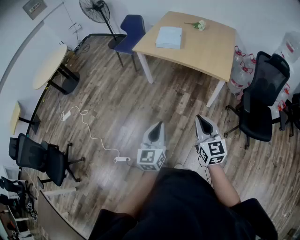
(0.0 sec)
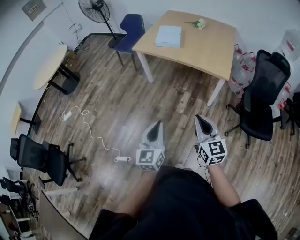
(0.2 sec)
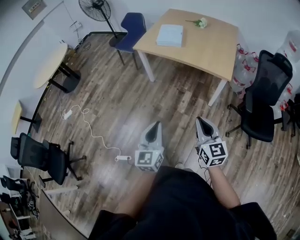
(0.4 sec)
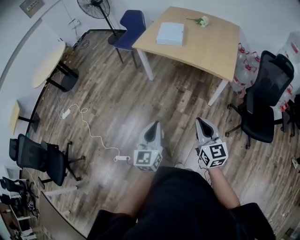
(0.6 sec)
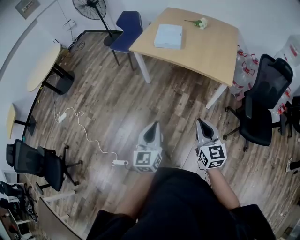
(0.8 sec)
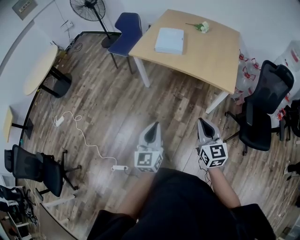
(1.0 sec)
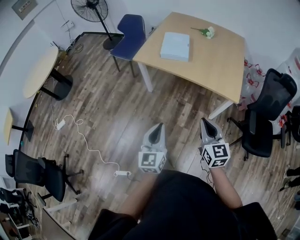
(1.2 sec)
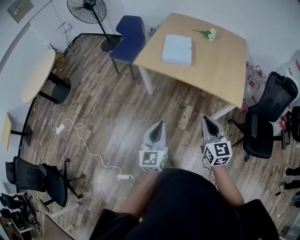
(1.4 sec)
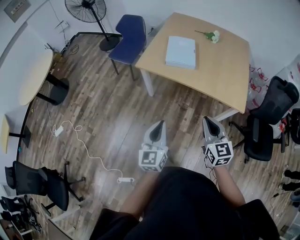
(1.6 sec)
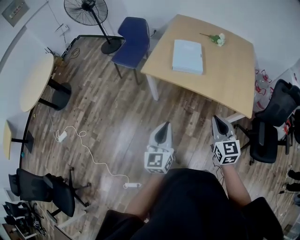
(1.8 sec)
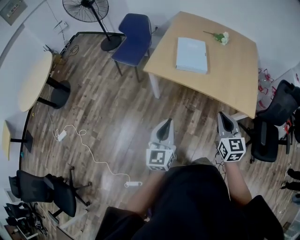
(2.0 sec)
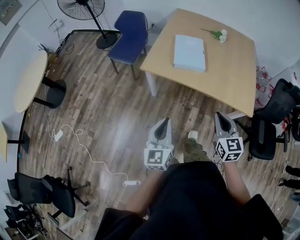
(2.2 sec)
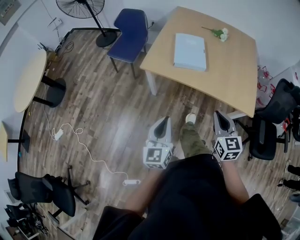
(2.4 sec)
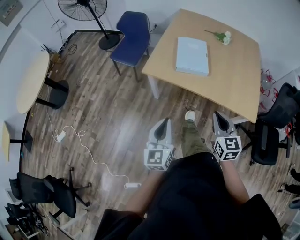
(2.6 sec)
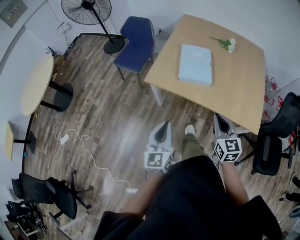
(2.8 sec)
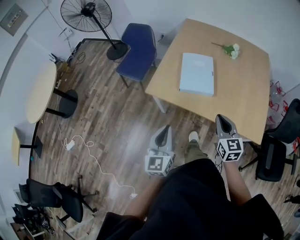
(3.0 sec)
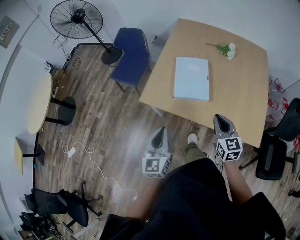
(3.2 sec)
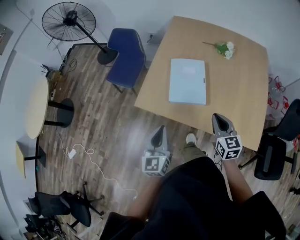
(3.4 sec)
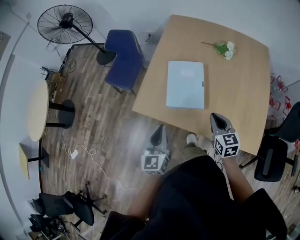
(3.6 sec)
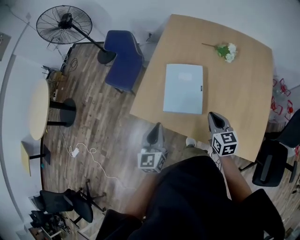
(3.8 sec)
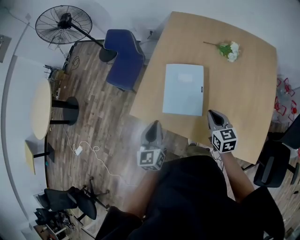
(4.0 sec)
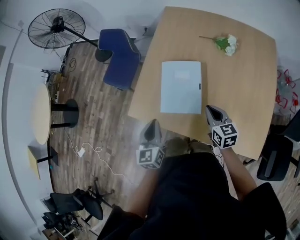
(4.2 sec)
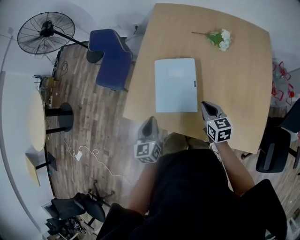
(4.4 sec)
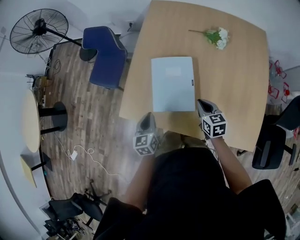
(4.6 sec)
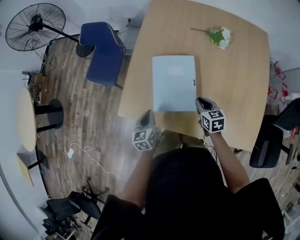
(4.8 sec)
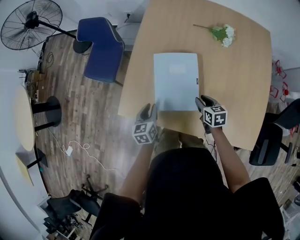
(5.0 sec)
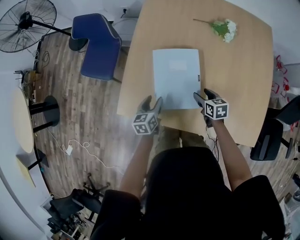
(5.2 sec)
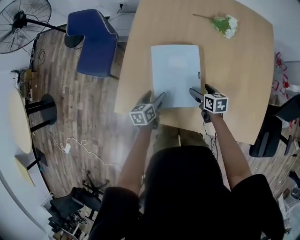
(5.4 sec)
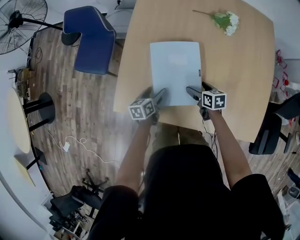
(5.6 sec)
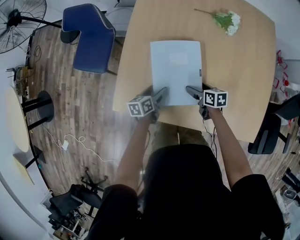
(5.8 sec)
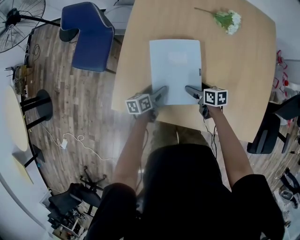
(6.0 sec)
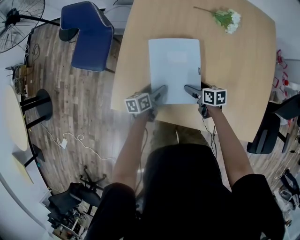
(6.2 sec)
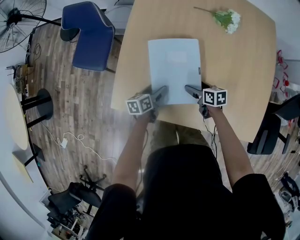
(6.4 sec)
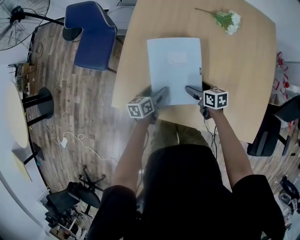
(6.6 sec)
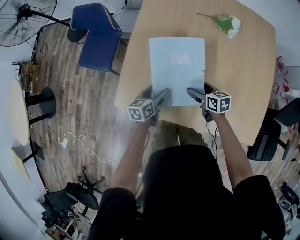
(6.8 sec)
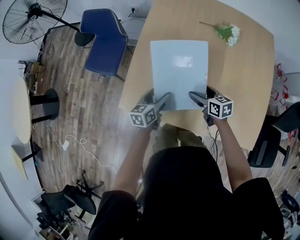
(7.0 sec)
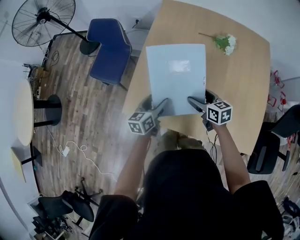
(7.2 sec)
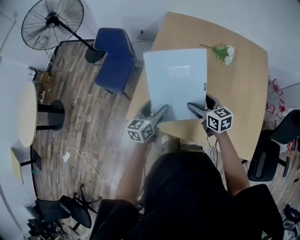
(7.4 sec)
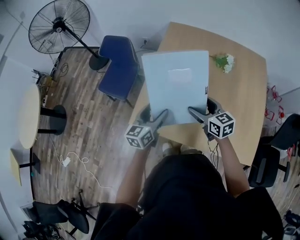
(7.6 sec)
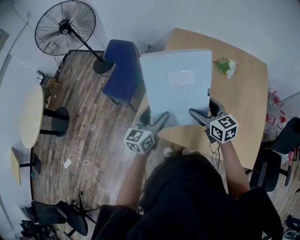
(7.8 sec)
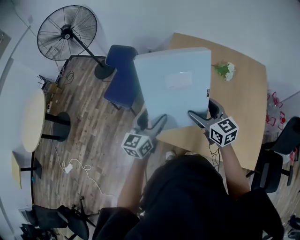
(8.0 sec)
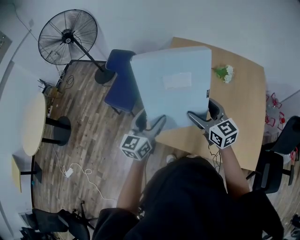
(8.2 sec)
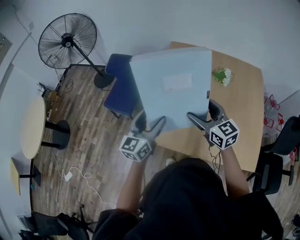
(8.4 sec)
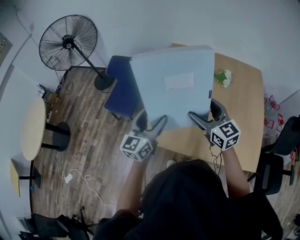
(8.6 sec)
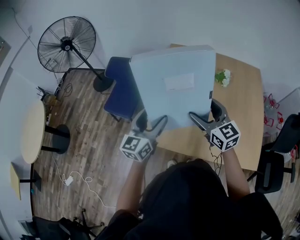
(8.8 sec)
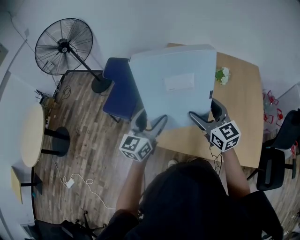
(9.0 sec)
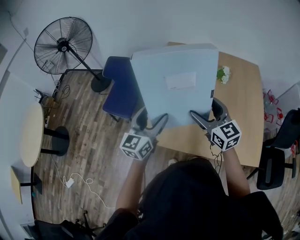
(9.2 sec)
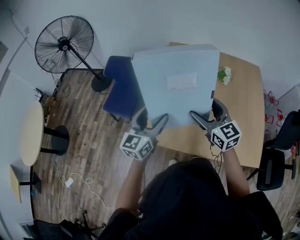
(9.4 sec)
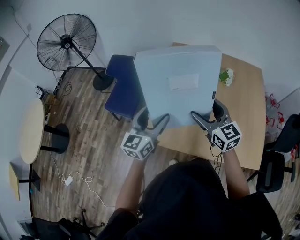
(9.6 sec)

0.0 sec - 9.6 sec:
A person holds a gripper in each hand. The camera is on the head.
0.0 sec - 1.6 sec: The pair of grippers is taken forward, approximately 40 cm.
1.6 sec - 3.2 sec: The grippers both shift forward by approximately 40 cm.
3.2 sec - 4.8 sec: Both grippers travel together forward and downward, some 35 cm. The right gripper changes its angle by roughly 30 degrees. The left gripper turns by some 30 degrees.
4.8 sec - 6.4 sec: The left gripper goes about 15 cm downward and forward, changes its angle by some 30 degrees, and opens its fingers; the right gripper goes approximately 15 cm downward, swivels approximately 30 degrees, and opens its fingers.
6.4 sec - 8.0 sec: Both grippers travel together upward, about 40 cm. The left gripper rotates approximately 50 degrees. The right gripper rotates about 50 degrees.
8.0 sec - 9.6 sec: The right gripper shifts by about 5 cm, while the left gripper shifts by approximately 5 cm.

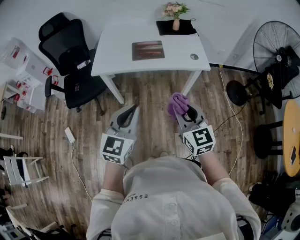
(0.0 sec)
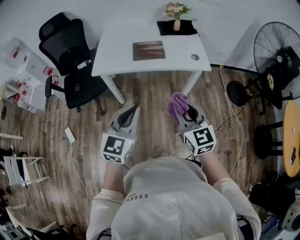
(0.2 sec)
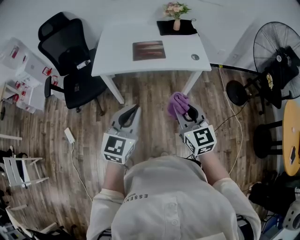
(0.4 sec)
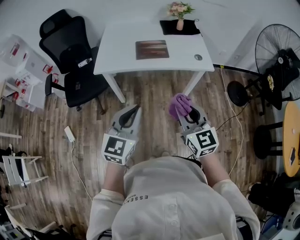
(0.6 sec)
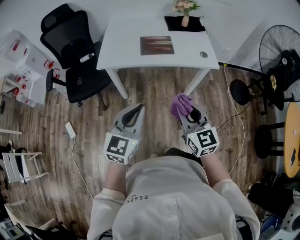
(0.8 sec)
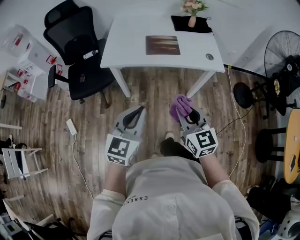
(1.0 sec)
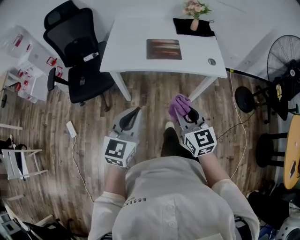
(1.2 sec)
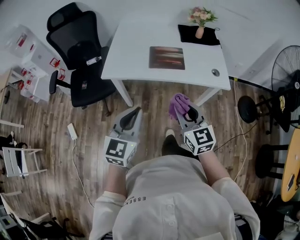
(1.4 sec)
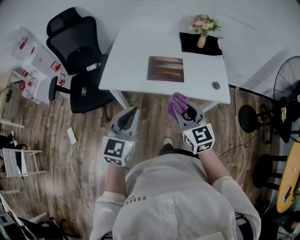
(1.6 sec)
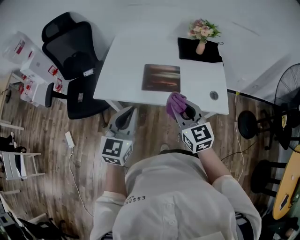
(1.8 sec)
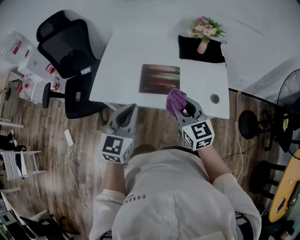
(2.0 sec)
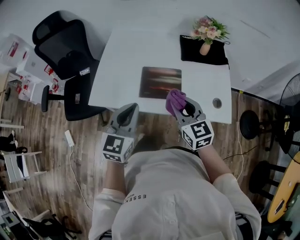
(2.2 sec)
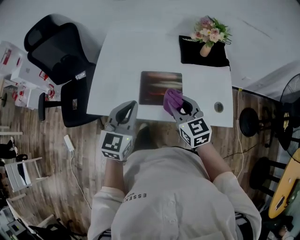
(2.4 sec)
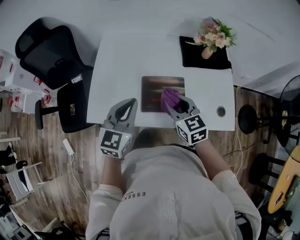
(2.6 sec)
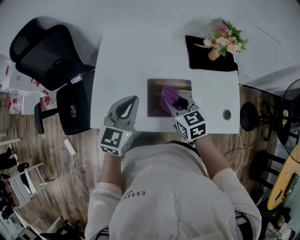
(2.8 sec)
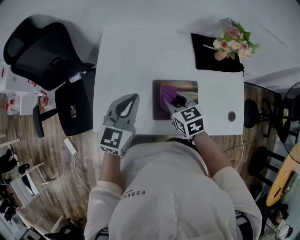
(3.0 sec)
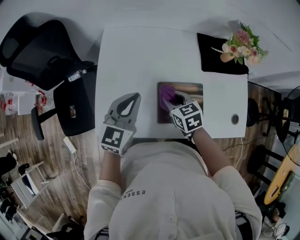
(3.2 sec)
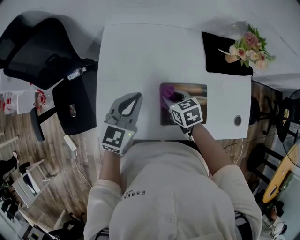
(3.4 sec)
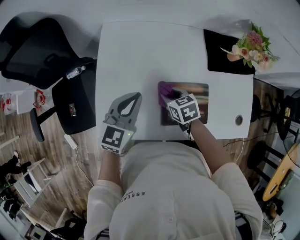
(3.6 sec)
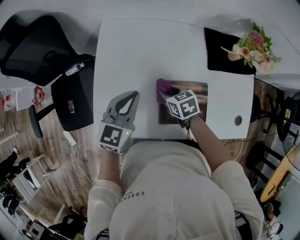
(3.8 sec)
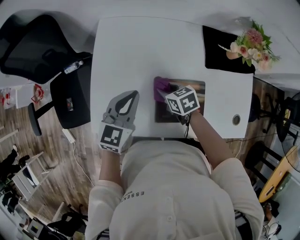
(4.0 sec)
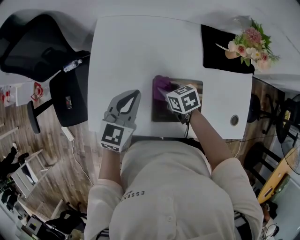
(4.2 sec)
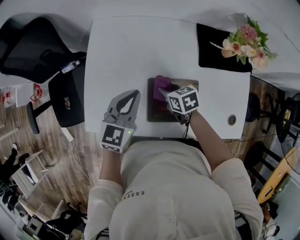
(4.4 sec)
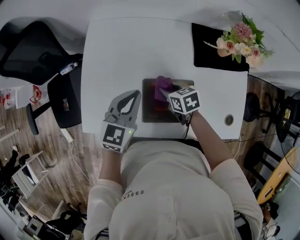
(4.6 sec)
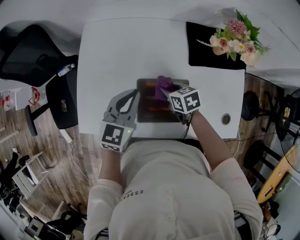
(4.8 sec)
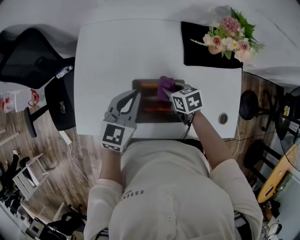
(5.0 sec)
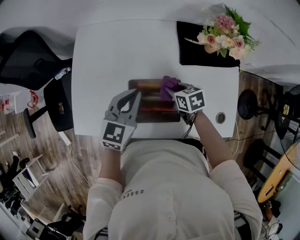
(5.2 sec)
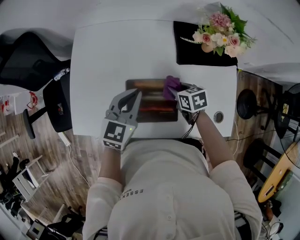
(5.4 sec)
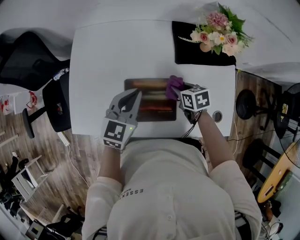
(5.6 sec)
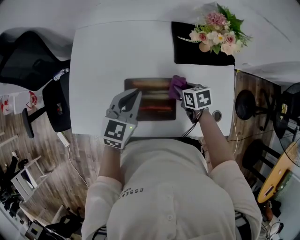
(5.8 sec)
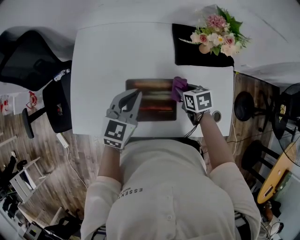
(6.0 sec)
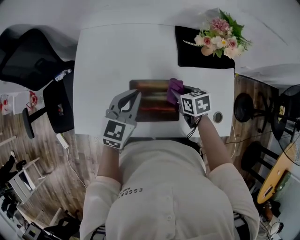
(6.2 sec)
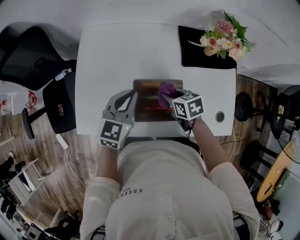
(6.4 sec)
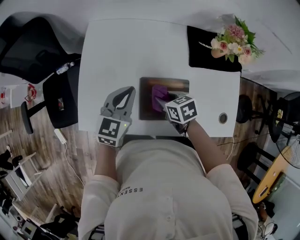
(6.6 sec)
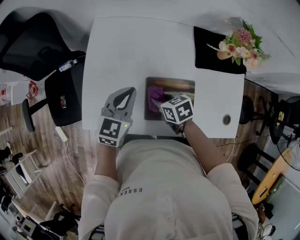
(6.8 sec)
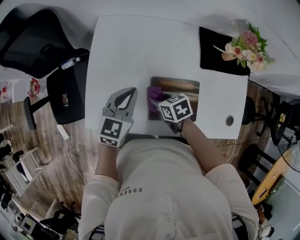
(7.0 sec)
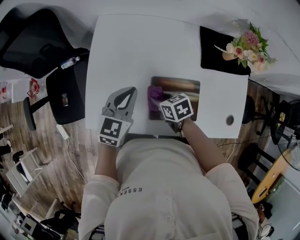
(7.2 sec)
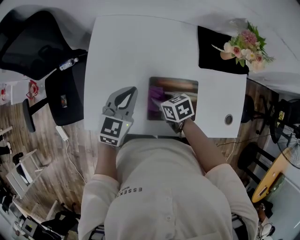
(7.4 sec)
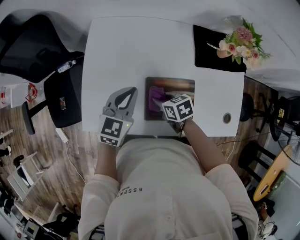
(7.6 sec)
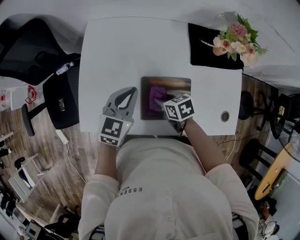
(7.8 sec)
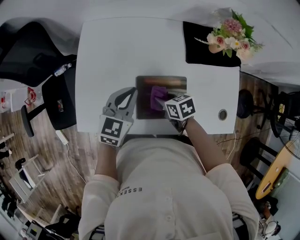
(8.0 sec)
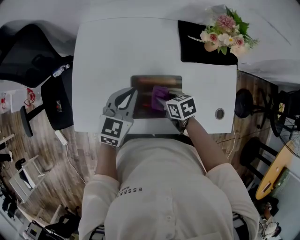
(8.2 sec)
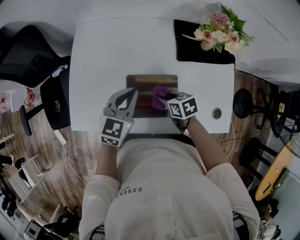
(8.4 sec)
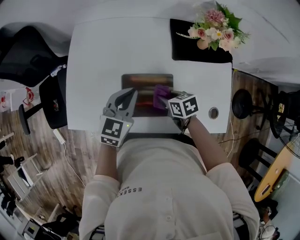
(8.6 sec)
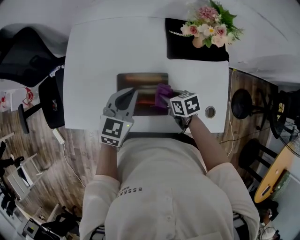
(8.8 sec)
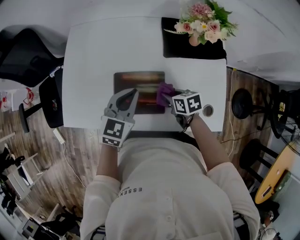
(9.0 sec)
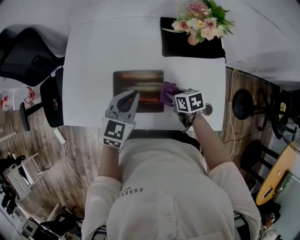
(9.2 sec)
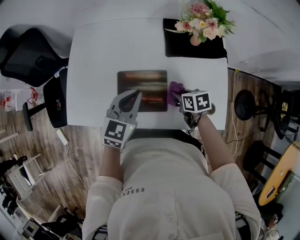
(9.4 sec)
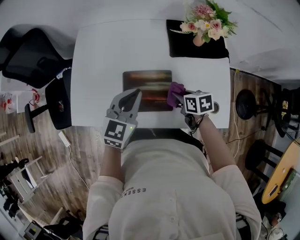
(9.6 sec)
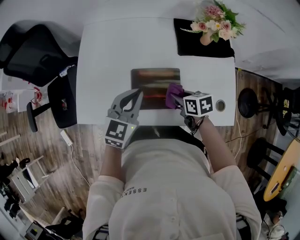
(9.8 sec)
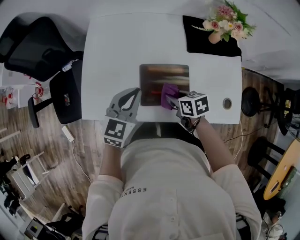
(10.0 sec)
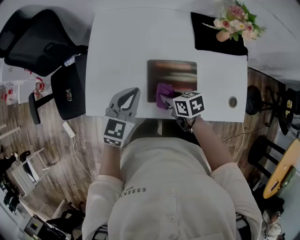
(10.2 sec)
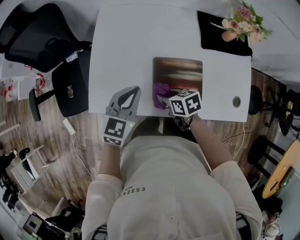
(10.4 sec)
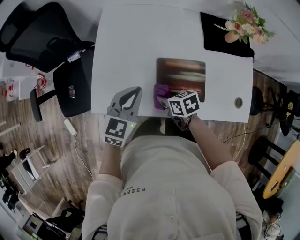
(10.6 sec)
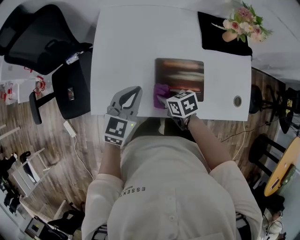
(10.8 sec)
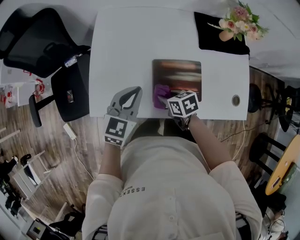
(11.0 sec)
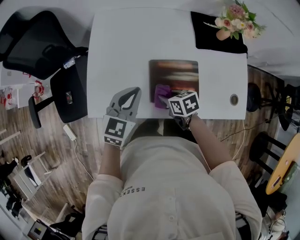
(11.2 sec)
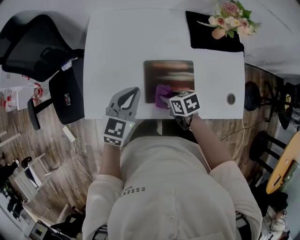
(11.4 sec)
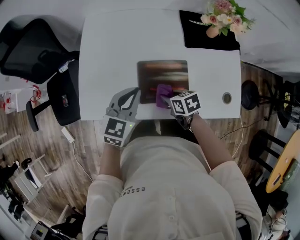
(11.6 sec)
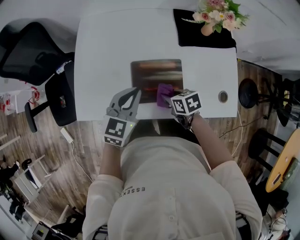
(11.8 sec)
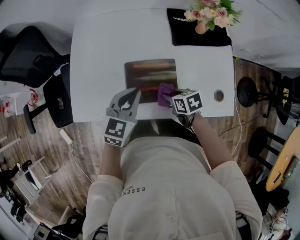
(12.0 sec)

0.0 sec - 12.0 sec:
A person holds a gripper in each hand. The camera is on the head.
0.0 sec - 1.6 sec: The two grippers go approximately 20 cm forward.
1.6 sec - 3.0 sec: Both grippers move forward, some 35 cm. The right gripper rotates about 30 degrees.
3.0 sec - 4.4 sec: The right gripper travels downward and forward by some 10 cm, and swivels approximately 20 degrees; the left gripper moves downward, roughly 5 cm.
4.4 sec - 6.0 sec: The left gripper heads to the right, covering approximately 10 cm. The right gripper moves to the right, some 20 cm.
6.0 sec - 7.6 sec: The left gripper heads to the left, covering about 10 cm. The right gripper is displaced to the left by some 20 cm.
7.6 sec - 9.0 sec: The left gripper goes some 15 cm to the right and backward; the right gripper moves to the right, approximately 20 cm.
9.0 sec - 10.4 sec: Both grippers travel together to the left, some 20 cm.
10.4 sec - 12.0 sec: Both grippers move to the right, some 15 cm.

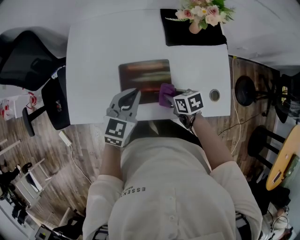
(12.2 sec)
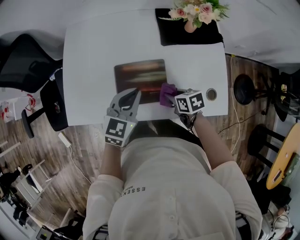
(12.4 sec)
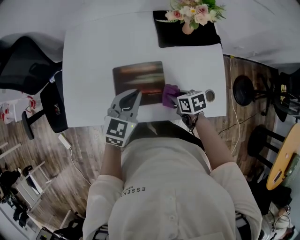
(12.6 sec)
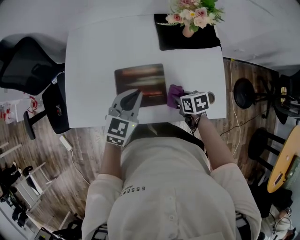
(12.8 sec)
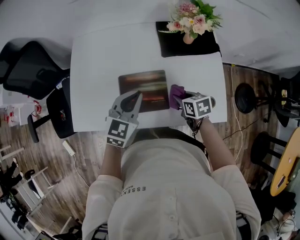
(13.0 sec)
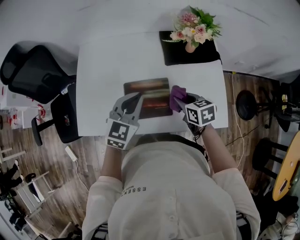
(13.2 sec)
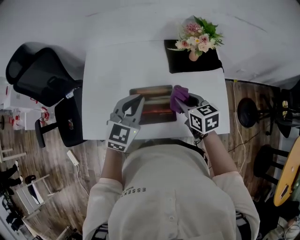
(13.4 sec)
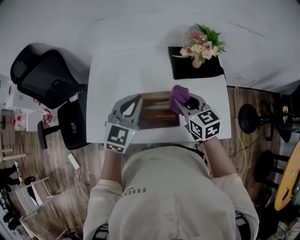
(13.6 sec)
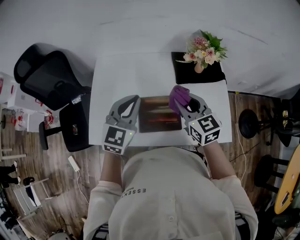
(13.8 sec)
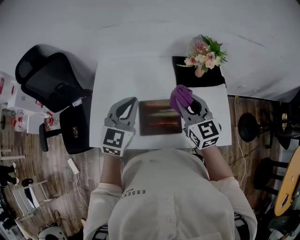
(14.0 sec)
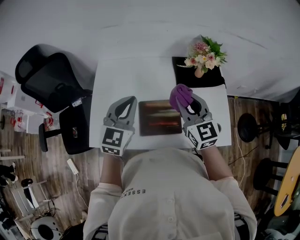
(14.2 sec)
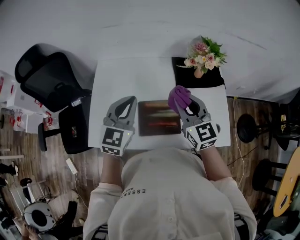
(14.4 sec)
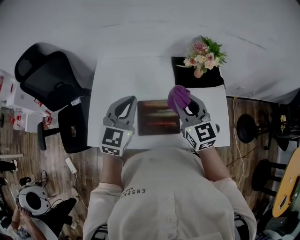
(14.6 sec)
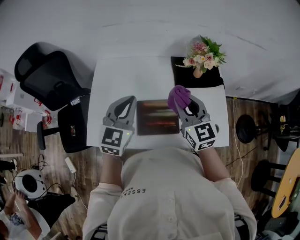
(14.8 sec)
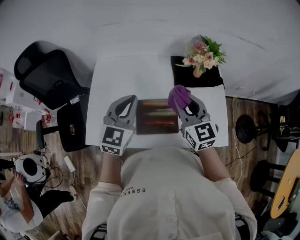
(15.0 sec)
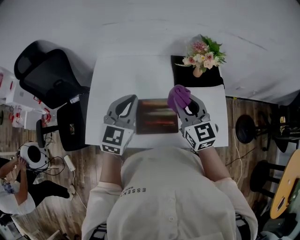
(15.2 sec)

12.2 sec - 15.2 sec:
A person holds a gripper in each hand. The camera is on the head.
12.2 sec - 13.8 sec: The left gripper is displaced upward by roughly 15 cm, while the right gripper shifts roughly 25 cm upward, and tilts its fingers roughly 30 degrees upward.
13.8 sec - 15.2 sec: There are only small adjustments of the grippers.
